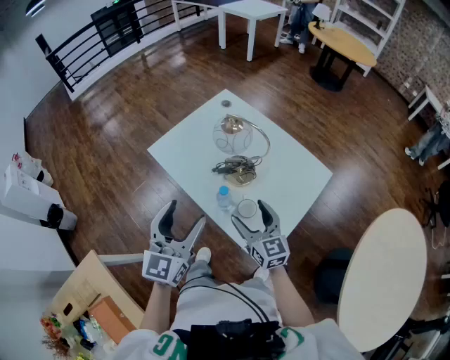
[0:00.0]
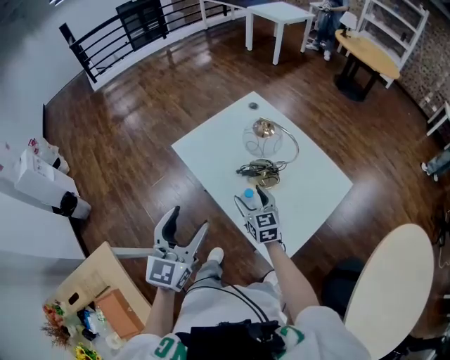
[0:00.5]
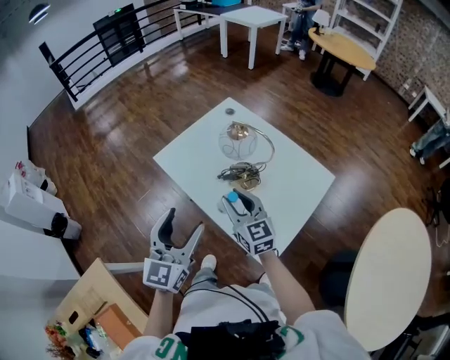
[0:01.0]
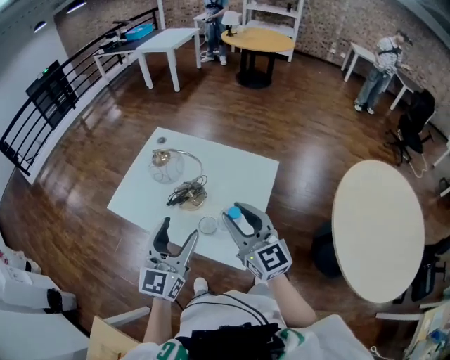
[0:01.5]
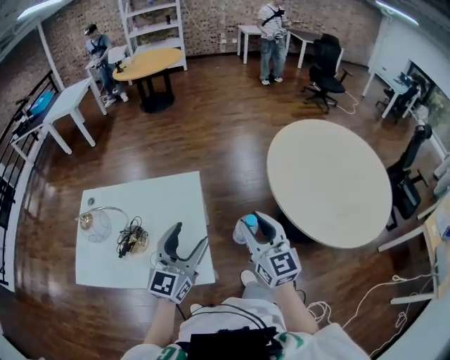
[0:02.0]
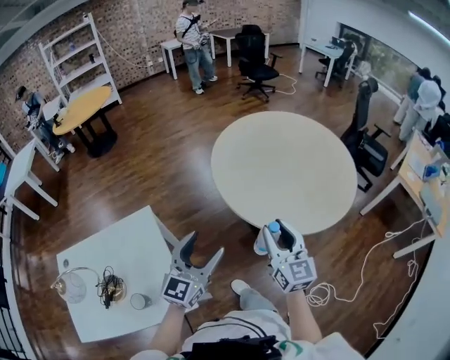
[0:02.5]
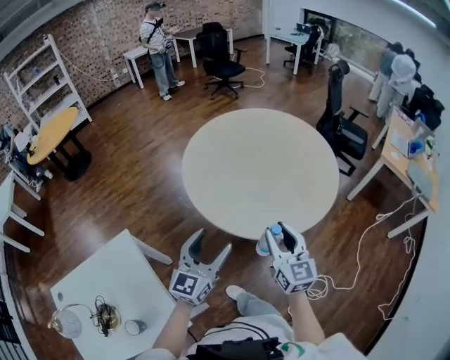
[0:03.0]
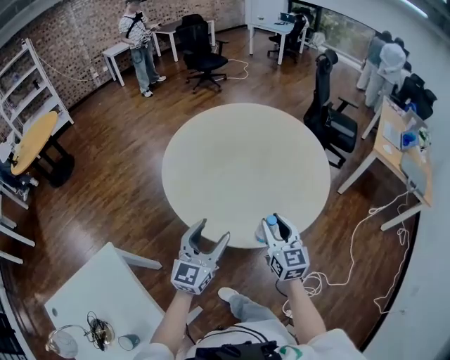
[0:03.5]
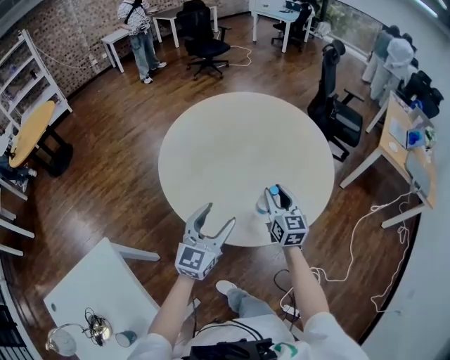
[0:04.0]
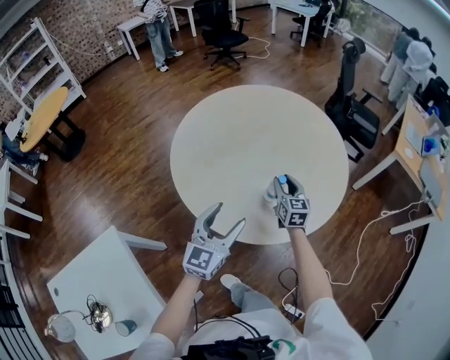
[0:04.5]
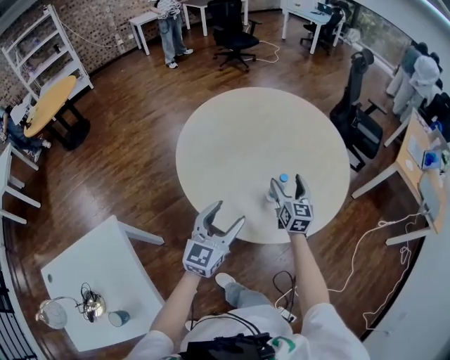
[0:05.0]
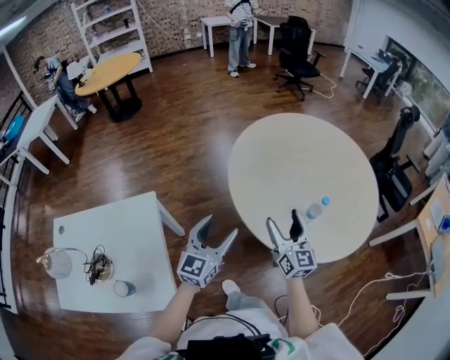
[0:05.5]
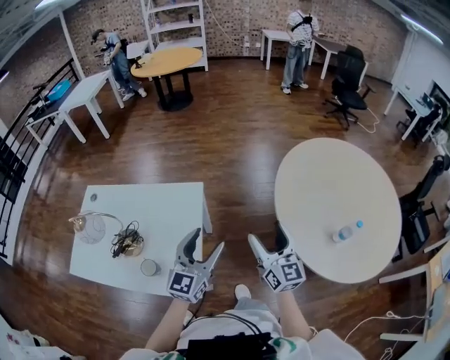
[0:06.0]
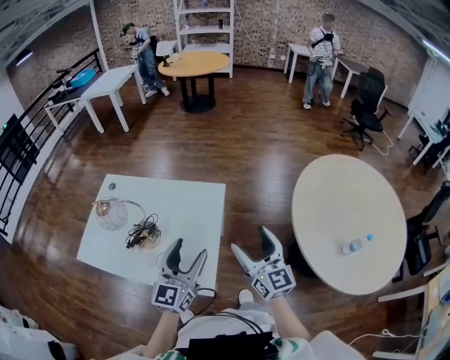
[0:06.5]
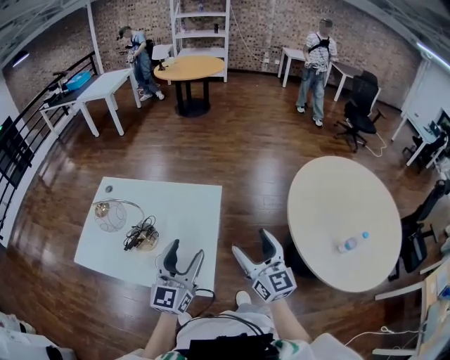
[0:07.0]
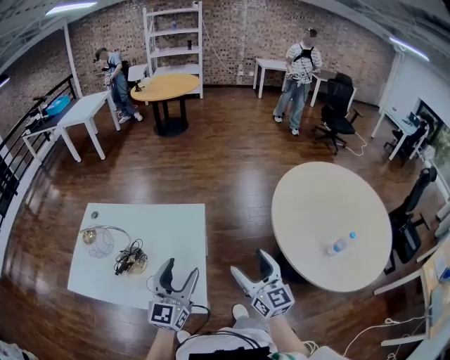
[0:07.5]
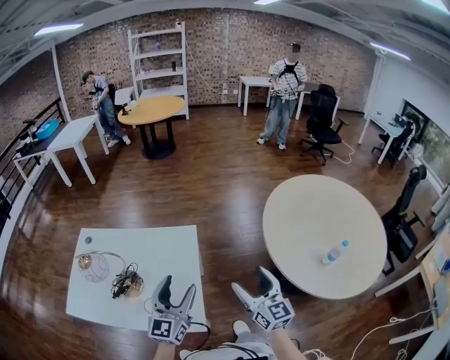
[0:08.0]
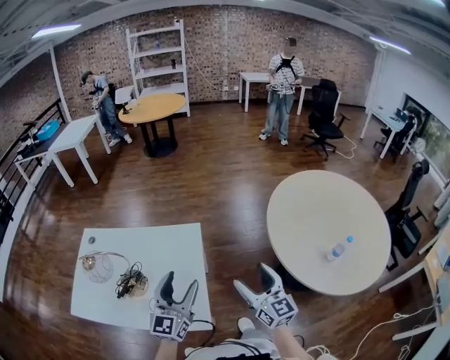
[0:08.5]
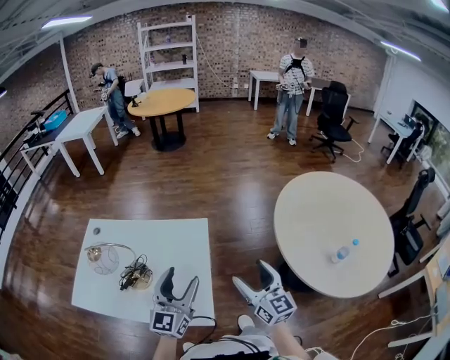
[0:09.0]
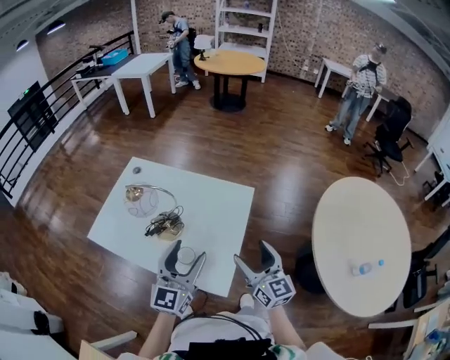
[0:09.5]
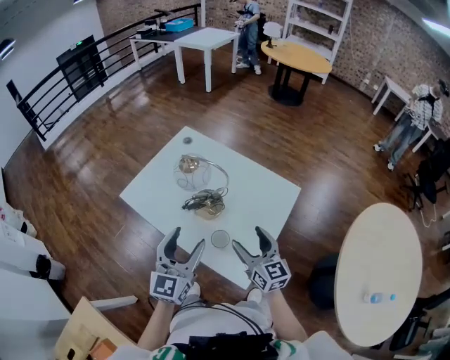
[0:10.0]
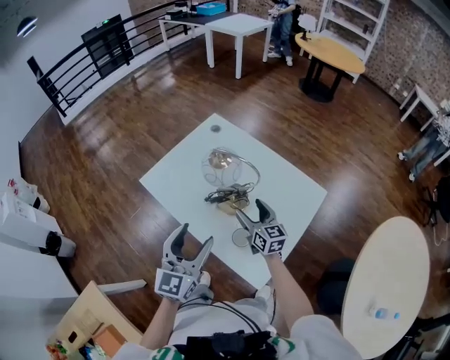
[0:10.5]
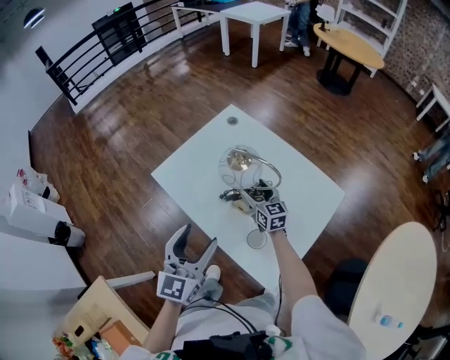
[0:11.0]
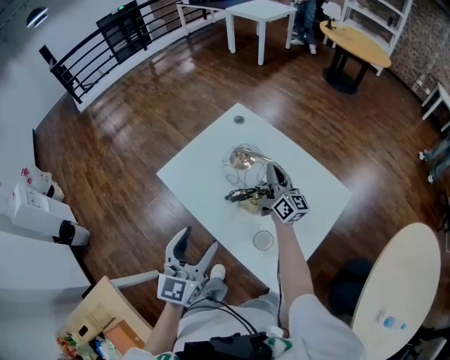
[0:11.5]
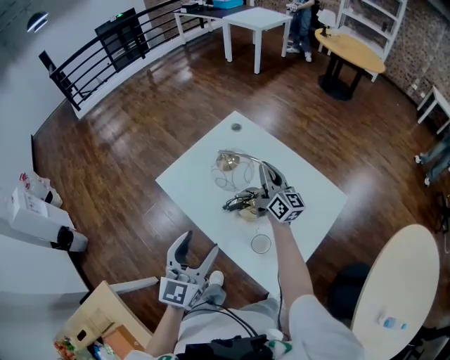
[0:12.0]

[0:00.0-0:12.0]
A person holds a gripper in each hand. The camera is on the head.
0:00.0 to 0:02.0: The left gripper moves about 35 cm, and changes its angle by approximately 60 degrees, while the right gripper changes place by some 40 cm, changes its angle by some 60 degrees, and closes its fingers.
0:02.0 to 0:04.0: The pair of grippers is taken some 50 cm. The right gripper changes its angle by some 50 degrees. The left gripper changes its angle by roughly 40 degrees.
0:04.0 to 0:06.0: The two grippers travel together, about 40 cm. The left gripper rotates approximately 50 degrees, while the right gripper rotates approximately 50 degrees, and opens.
0:06.0 to 0:08.0: The left gripper goes about 10 cm to the left. The right gripper heads to the left and backward, covering approximately 10 cm.
0:08.0 to 0:10.0: The left gripper ends up some 25 cm from where it was, and changes its angle by some 30 degrees; the right gripper moves some 30 cm, and changes its angle by roughly 40 degrees.
0:10.0 to 0:12.0: The left gripper is displaced to the left by roughly 10 cm; the right gripper travels forward by some 30 cm, turns by some 20 degrees, and closes up.

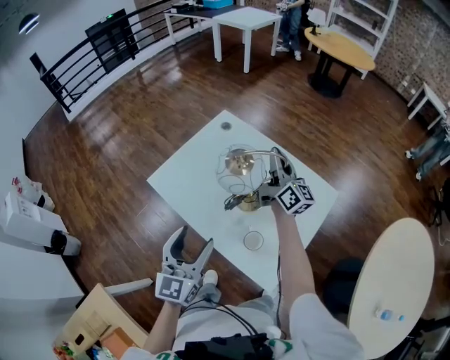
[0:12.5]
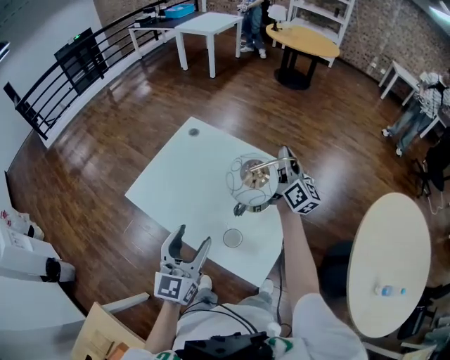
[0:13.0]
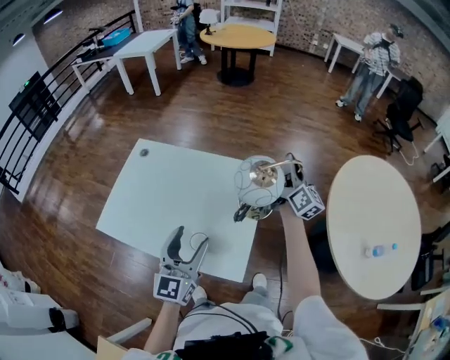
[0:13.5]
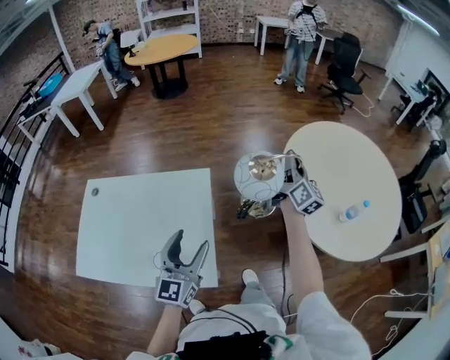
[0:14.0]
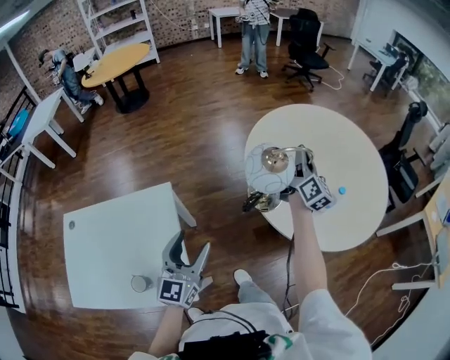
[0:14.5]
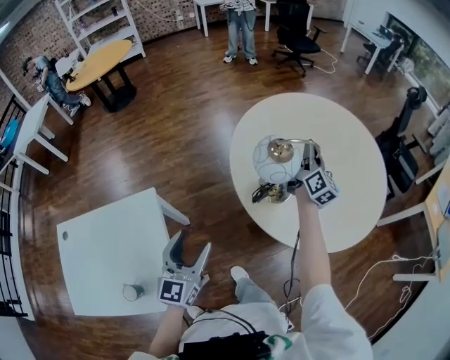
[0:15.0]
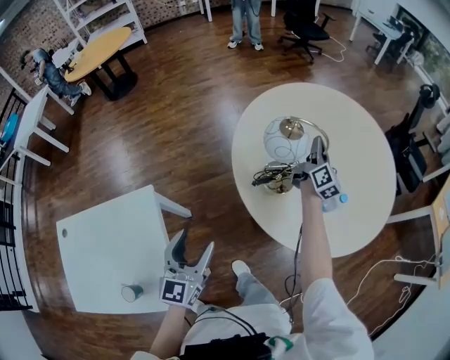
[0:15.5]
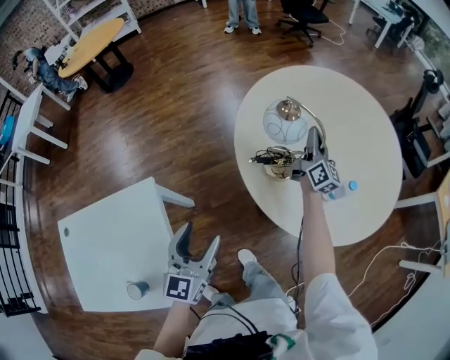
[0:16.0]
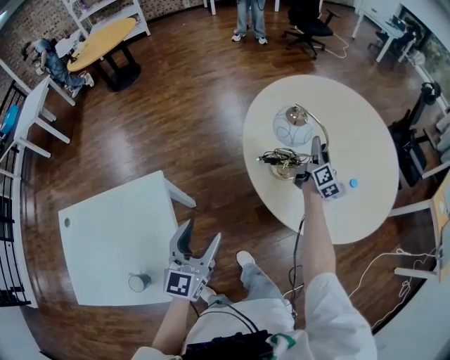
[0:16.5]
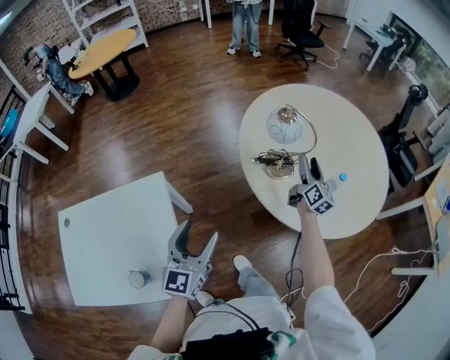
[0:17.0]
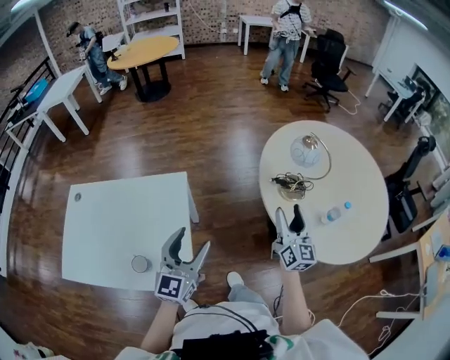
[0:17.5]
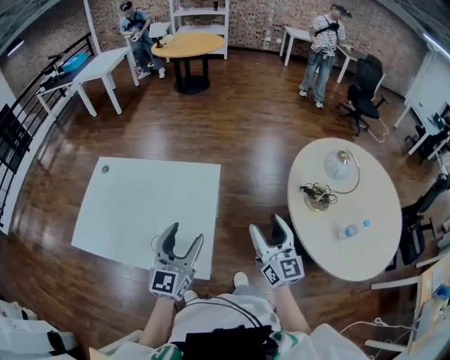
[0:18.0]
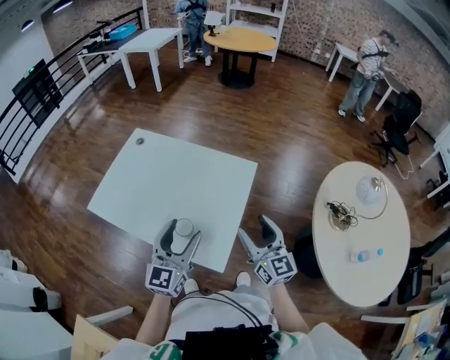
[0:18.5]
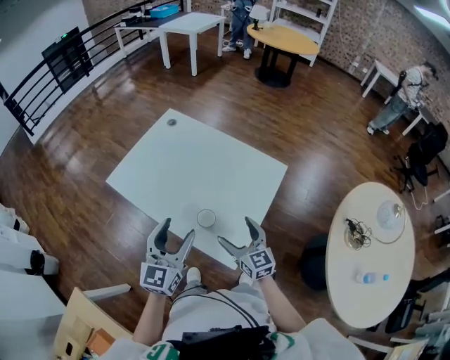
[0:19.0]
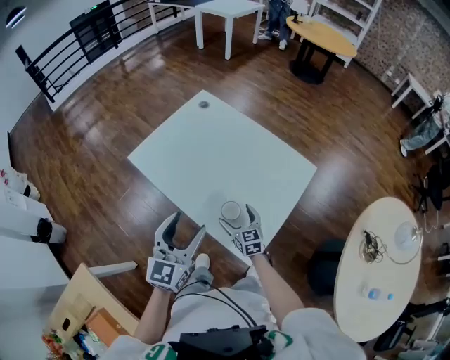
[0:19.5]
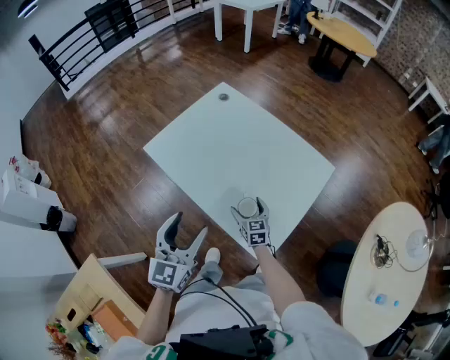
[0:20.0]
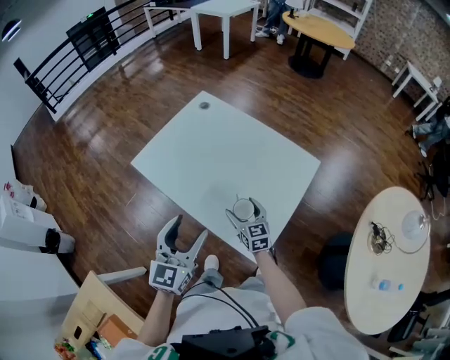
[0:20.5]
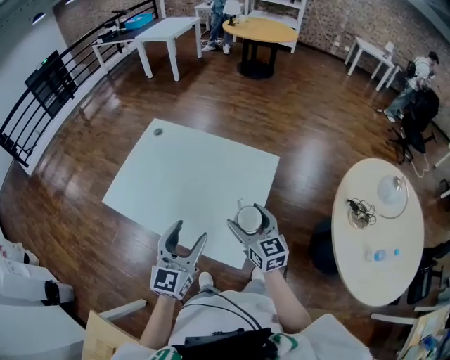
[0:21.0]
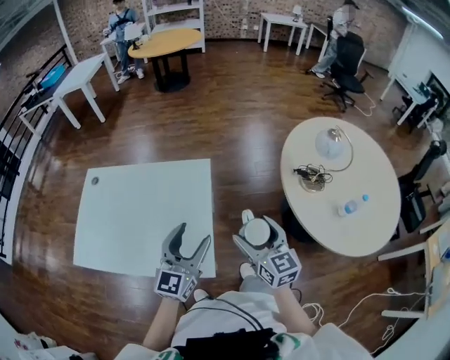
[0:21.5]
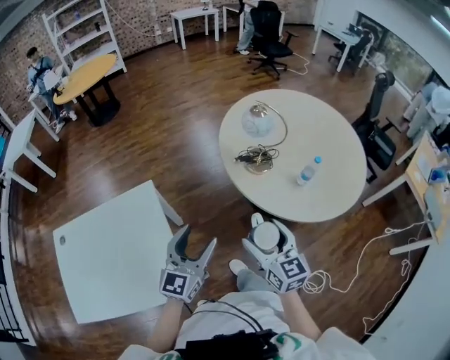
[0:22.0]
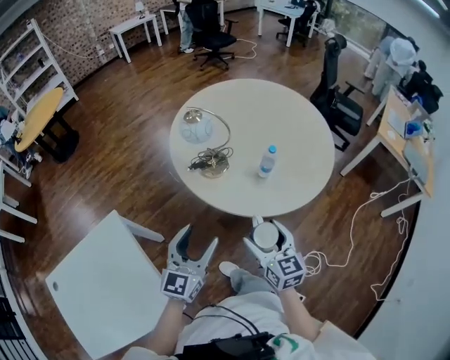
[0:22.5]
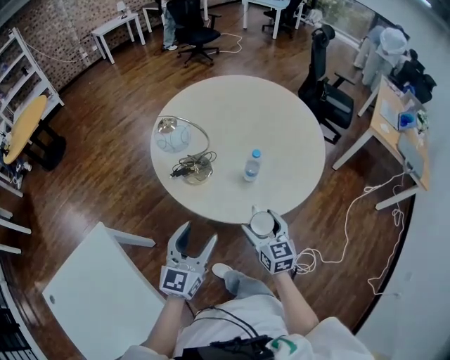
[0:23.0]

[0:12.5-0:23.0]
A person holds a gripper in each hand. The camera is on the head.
0:12.5 to 0:14.5: Both grippers are carried approximately 70 cm. The left gripper swivels about 50 degrees. Meanwhile the right gripper changes its angle by roughly 70 degrees.
0:14.5 to 0:16.5: The right gripper heads downward, to the right and forward, covering about 25 cm, and opens its fingers; the left gripper goes some 10 cm forward.
0:16.5 to 0:19.0: The two grippers travel together, approximately 70 cm. The right gripper rotates about 100 degrees, and opens; the left gripper swivels some 50 degrees.
0:19.0 to 0:21.0: The left gripper reaches some 10 cm to the left, then returns; the right gripper goes downward and returns, some 15 cm each way.
0:21.0 to 0:23.0: The two grippers travel together, some 60 cm. The right gripper changes its angle by roughly 70 degrees, while the left gripper rotates some 70 degrees.

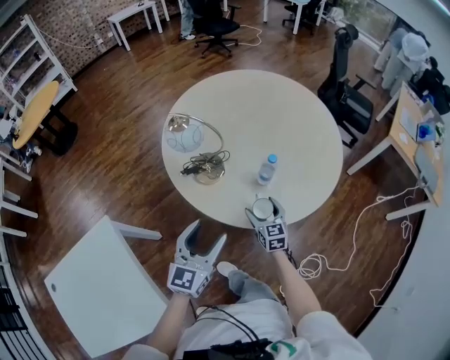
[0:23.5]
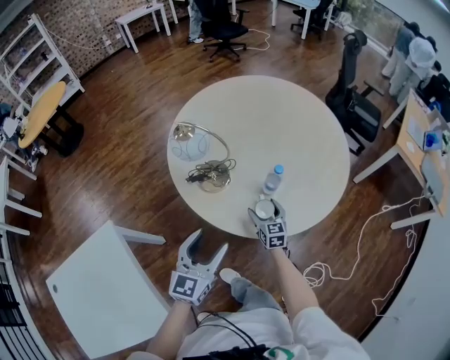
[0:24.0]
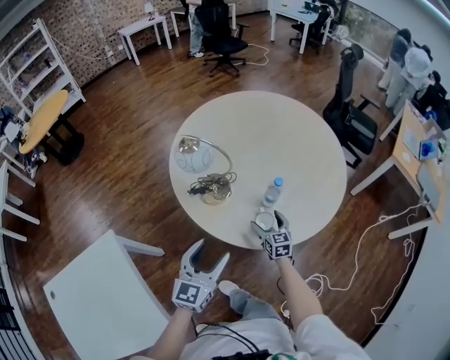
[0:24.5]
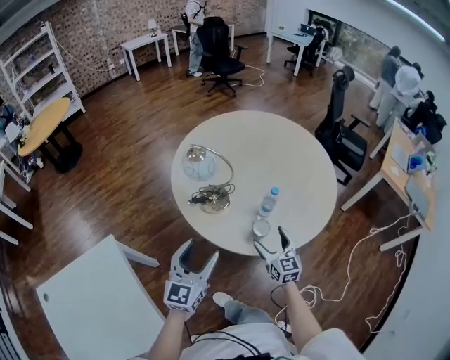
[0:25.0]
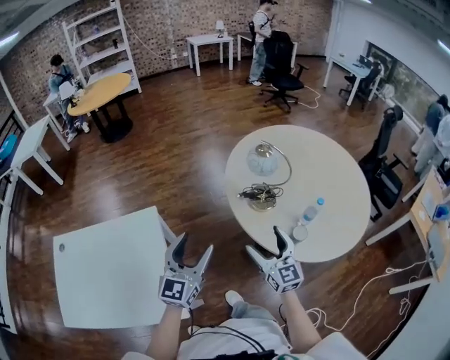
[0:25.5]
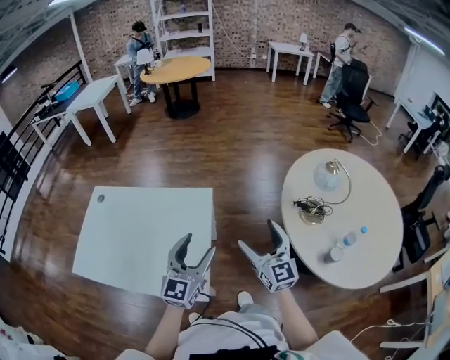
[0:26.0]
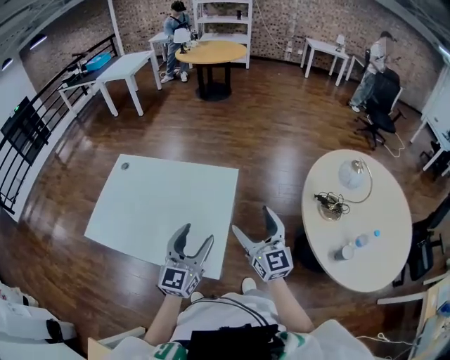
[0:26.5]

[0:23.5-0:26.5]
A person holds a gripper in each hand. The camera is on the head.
0:23.5 to 0:25.0: The right gripper moves upward, some 10 cm. Meanwhile the left gripper heads to the left, covering approximately 5 cm.
0:25.0 to 0:26.5: The two grippers travel together, roughly 50 cm. The right gripper changes its angle by some 60 degrees, while the left gripper rotates some 50 degrees.

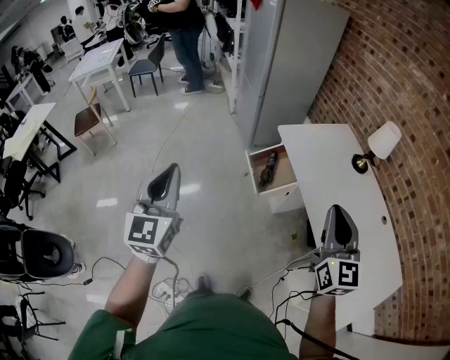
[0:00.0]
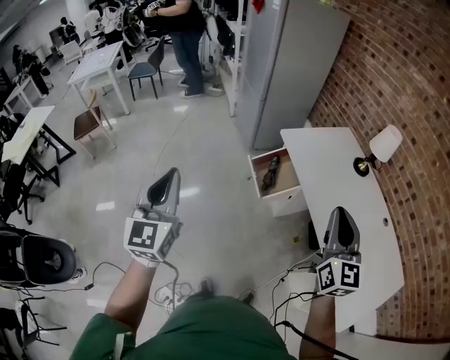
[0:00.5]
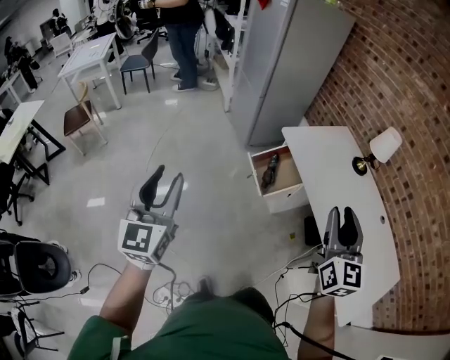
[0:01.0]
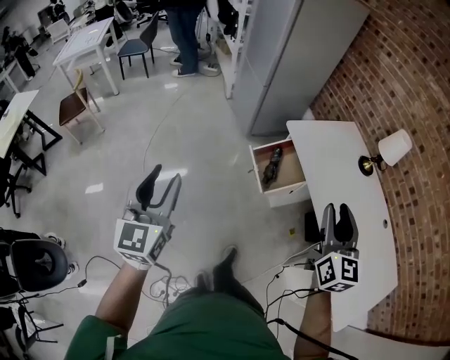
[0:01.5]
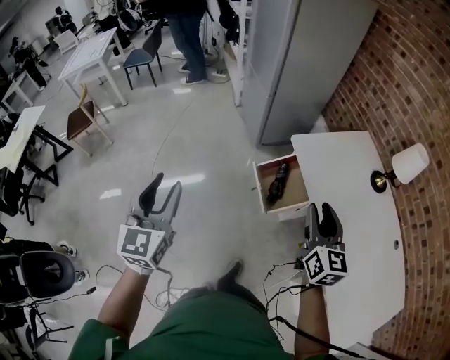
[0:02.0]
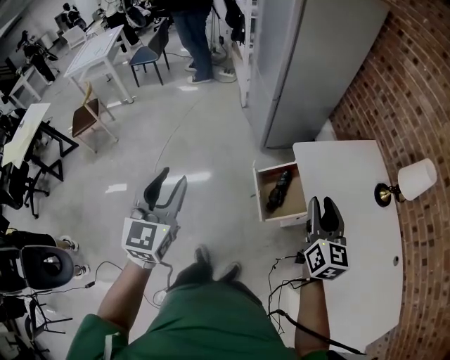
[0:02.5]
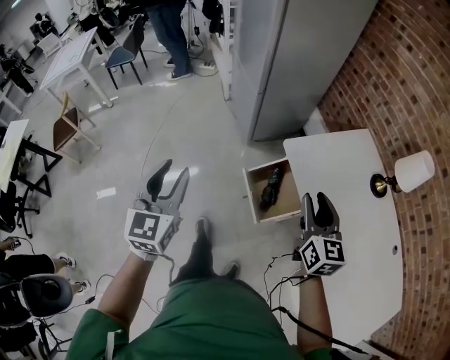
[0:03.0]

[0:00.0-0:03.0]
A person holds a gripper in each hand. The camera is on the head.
0:00.0 to 0:01.5: The right gripper heads forward and to the left, covering some 10 cm, and opens up. Meanwhile the left gripper is displaced to the left, forward and downward by roughly 15 cm, and opens.
0:01.5 to 0:03.0: Both grippers travel together forward, some 30 cm.
